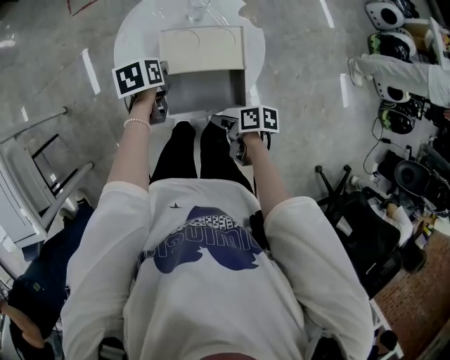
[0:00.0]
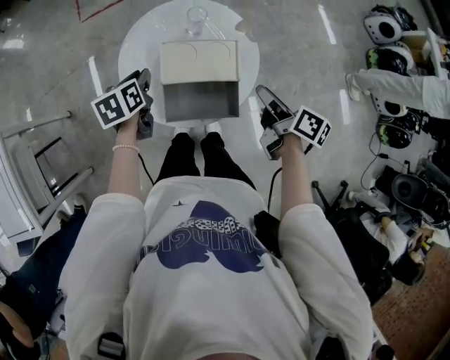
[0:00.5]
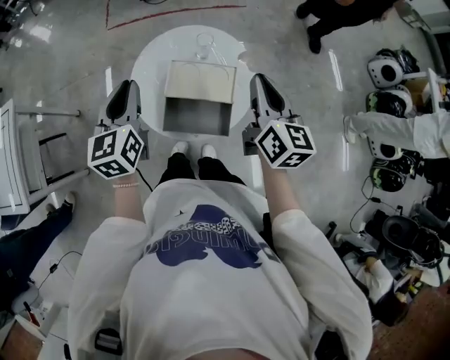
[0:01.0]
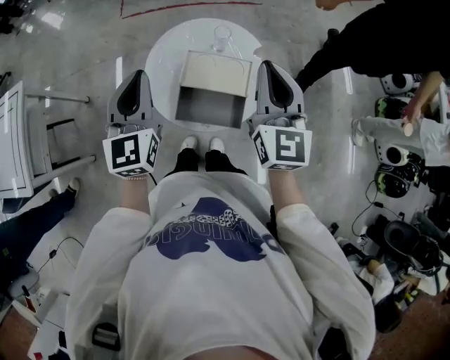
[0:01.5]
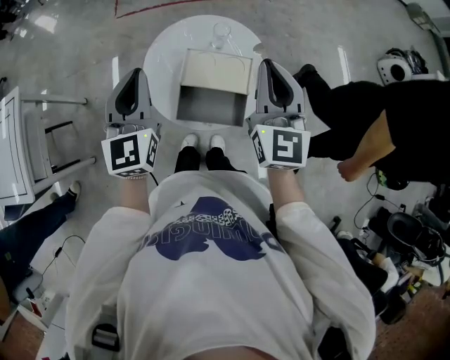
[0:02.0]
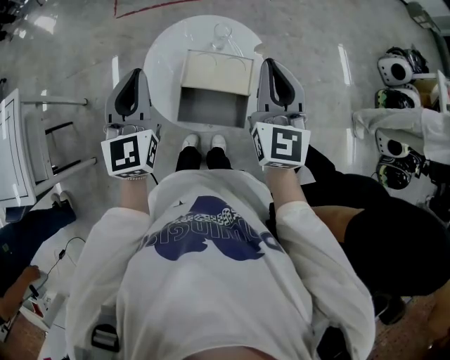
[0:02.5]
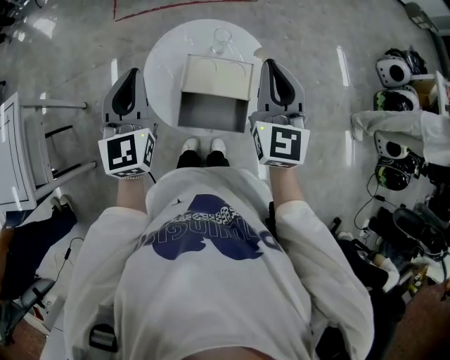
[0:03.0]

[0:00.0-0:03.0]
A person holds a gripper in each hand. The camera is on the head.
0:00.0 to 0:01.5: Both grippers travel together upward, roughly 35 cm. The right gripper points its fingers about 40 degrees further upward, and closes up, while the left gripper points its fingers some 50 degrees further upward.
0:01.5 to 0:03.0: The grippers stay close to where they were, moving slightly.

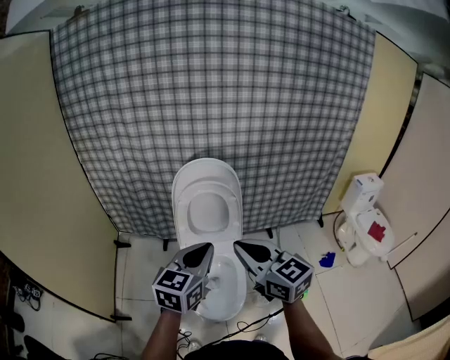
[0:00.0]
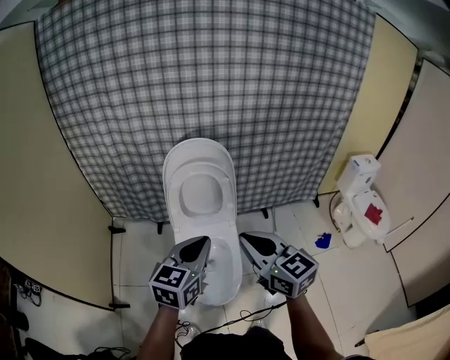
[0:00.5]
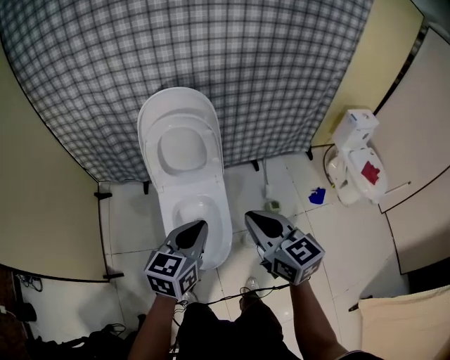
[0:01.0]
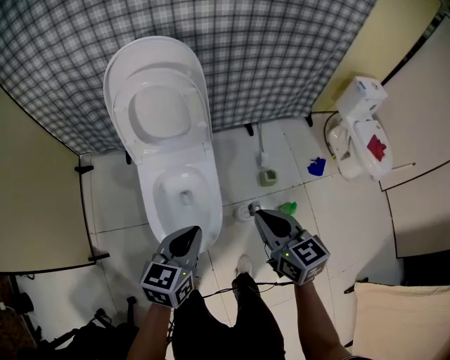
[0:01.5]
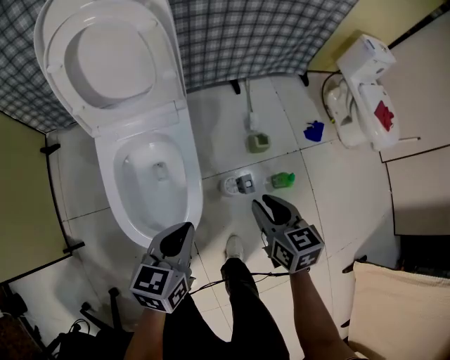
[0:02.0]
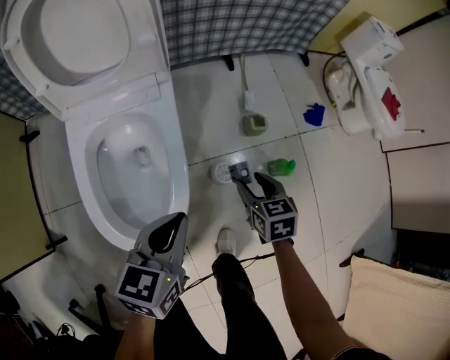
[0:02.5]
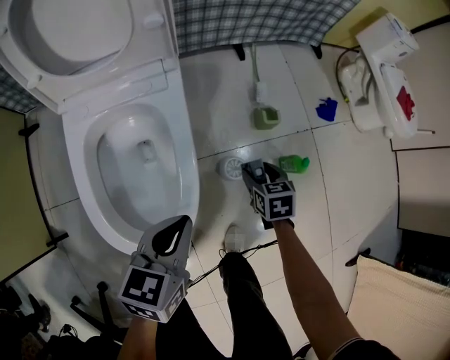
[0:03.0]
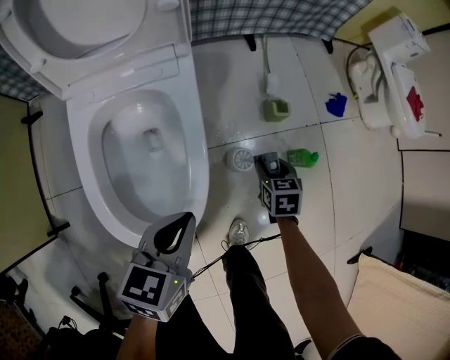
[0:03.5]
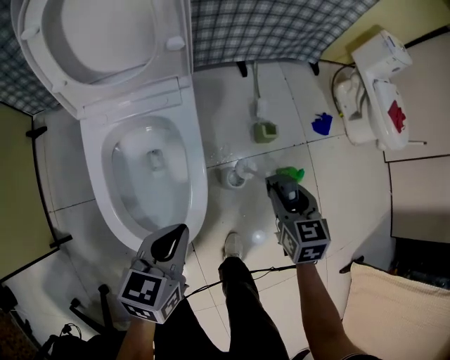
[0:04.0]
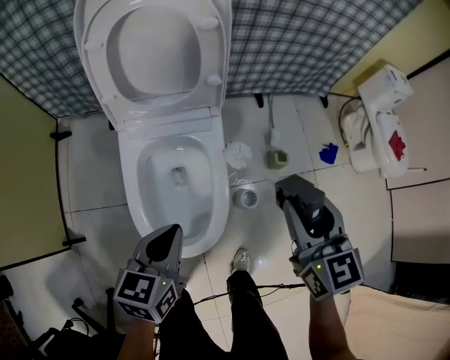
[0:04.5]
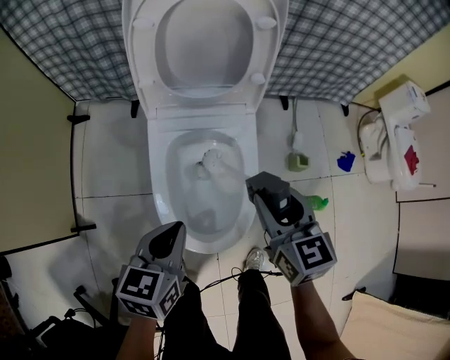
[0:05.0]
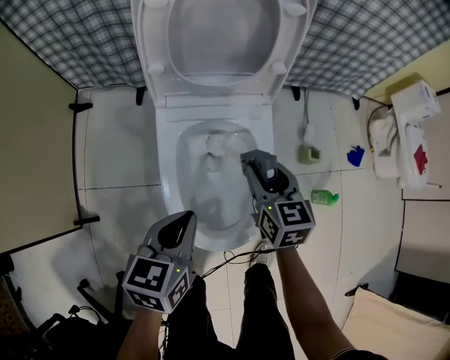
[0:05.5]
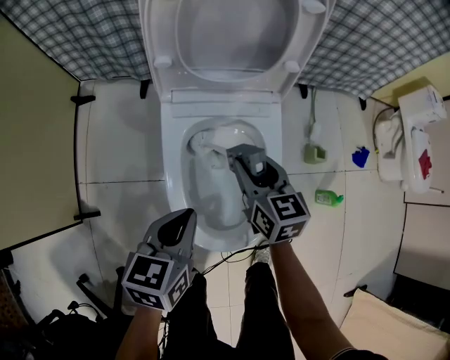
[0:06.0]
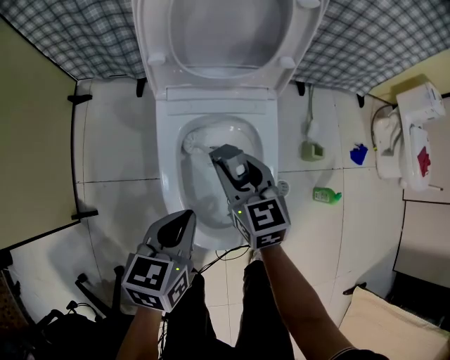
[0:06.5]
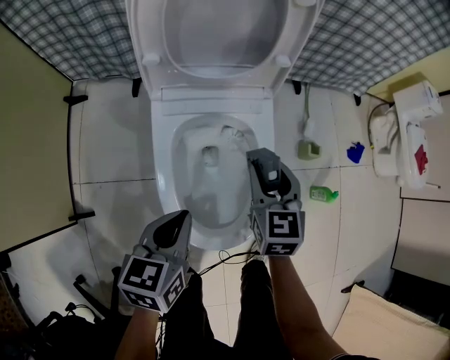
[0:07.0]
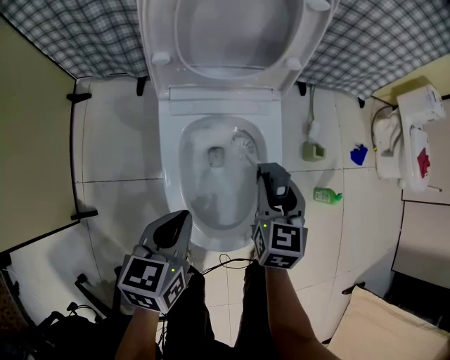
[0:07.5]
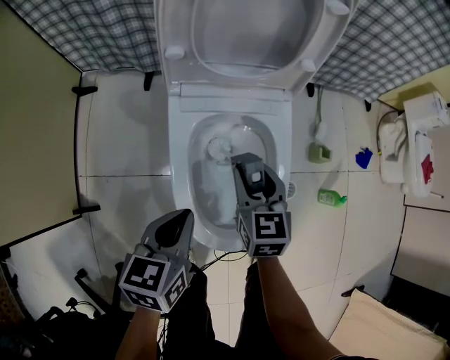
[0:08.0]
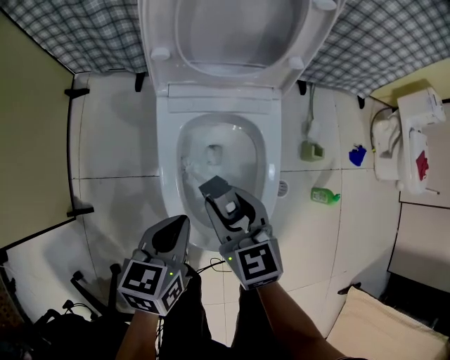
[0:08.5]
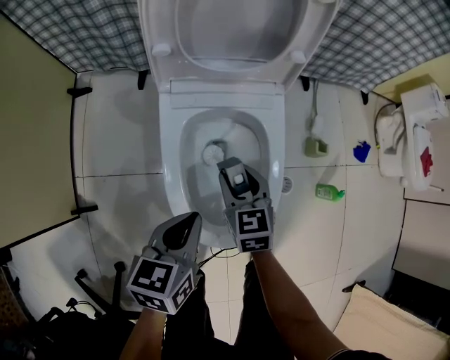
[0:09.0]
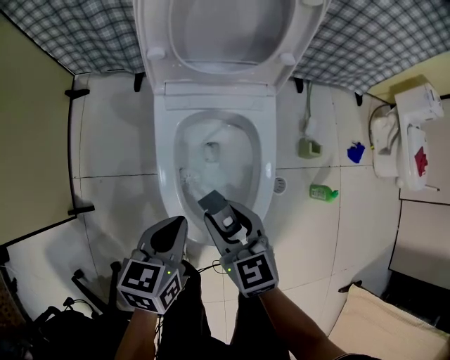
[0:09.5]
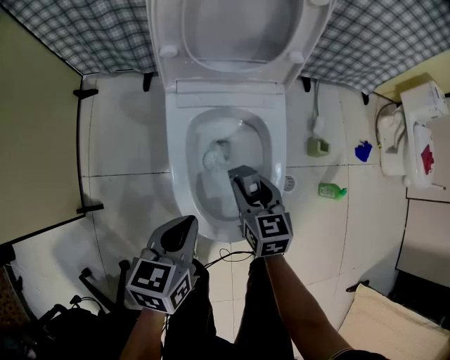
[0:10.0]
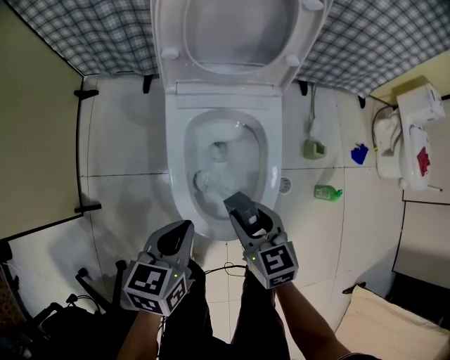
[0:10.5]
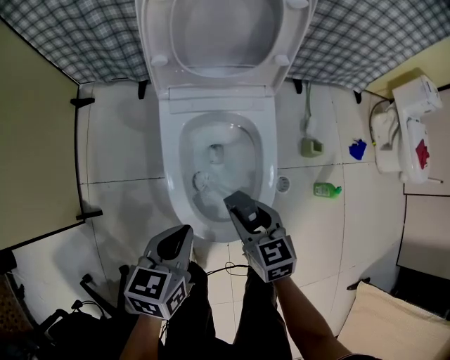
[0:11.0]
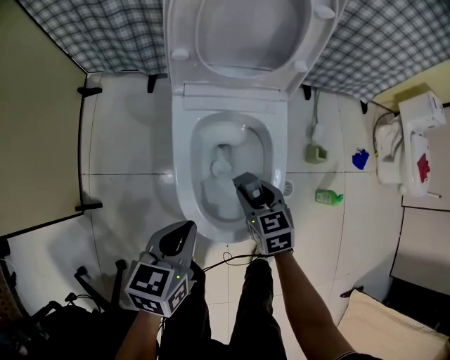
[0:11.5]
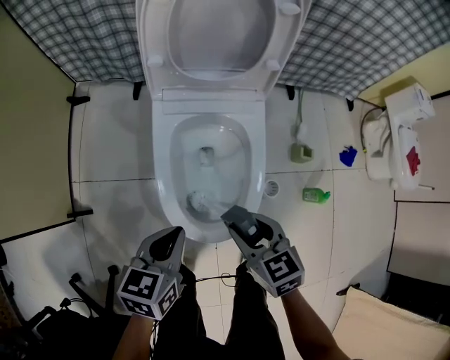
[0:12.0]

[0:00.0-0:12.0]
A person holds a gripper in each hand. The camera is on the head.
0:00.0 to 0:02.0: The right gripper travels downward and to the right by roughly 50 cm, tilts its fingers approximately 30 degrees downward, and opens its fingers; the left gripper is displaced downward by roughly 40 cm, and changes its angle by approximately 30 degrees.
0:02.0 to 0:04.0: The right gripper moves about 25 cm downward and comes back. Meanwhile the left gripper heads downward, covering about 5 cm.
0:04.0 to 0:06.0: The left gripper shifts approximately 20 cm to the left. Meanwhile the right gripper goes about 30 cm to the left, and turns by about 30 degrees.
0:06.0 to 0:08.0: The right gripper travels to the right and back again, roughly 10 cm each way.
0:08.0 to 0:10.0: The right gripper moves forward and backward over some 10 cm, changing direction 3 times.
0:10.0 to 0:12.0: The right gripper goes forward and backward, roughly 10 cm each way, reversing 2 times.

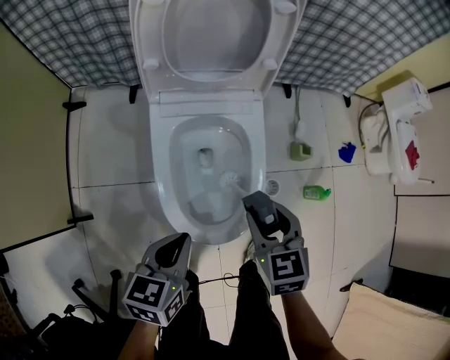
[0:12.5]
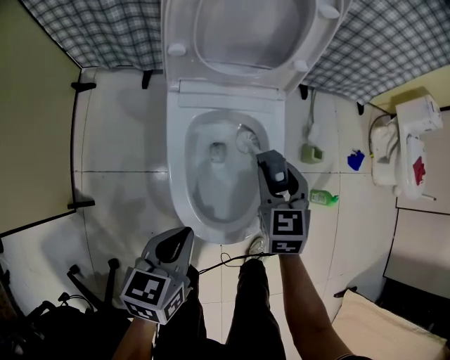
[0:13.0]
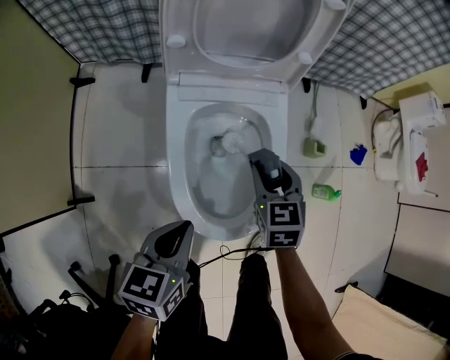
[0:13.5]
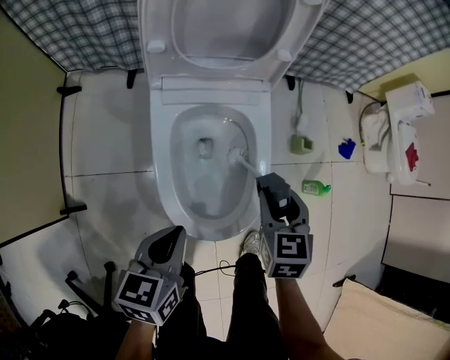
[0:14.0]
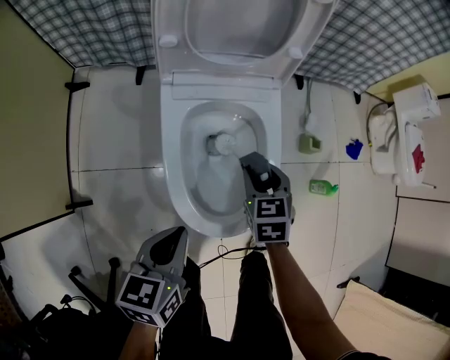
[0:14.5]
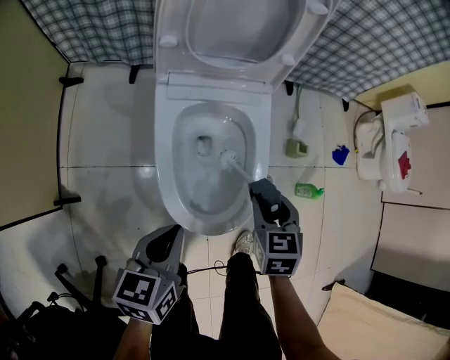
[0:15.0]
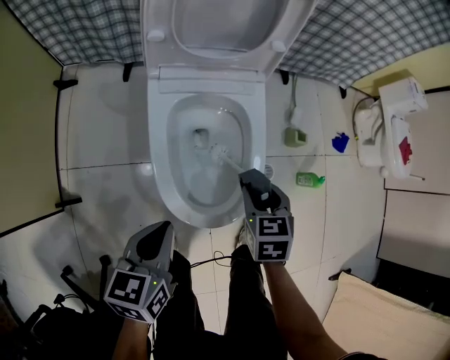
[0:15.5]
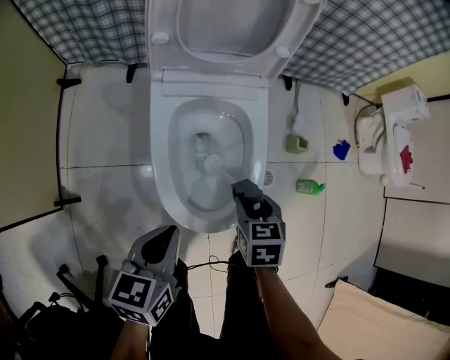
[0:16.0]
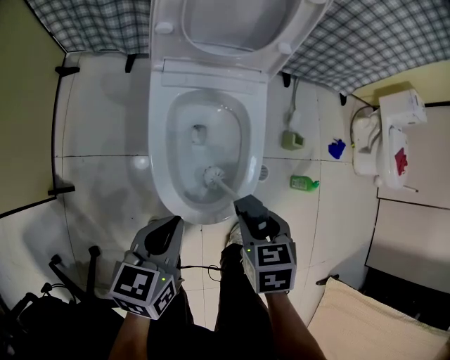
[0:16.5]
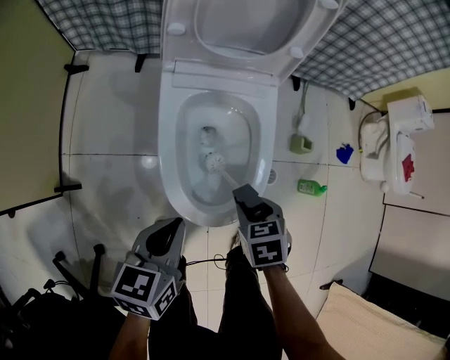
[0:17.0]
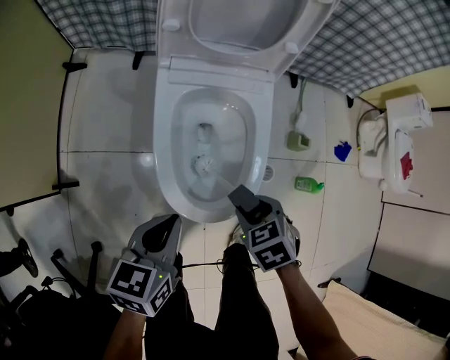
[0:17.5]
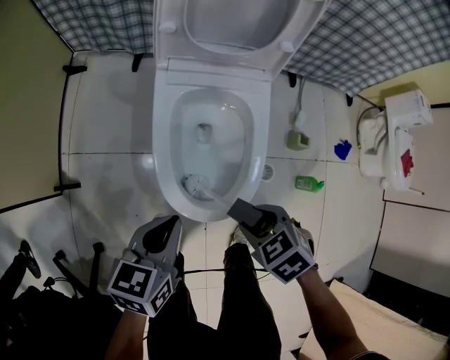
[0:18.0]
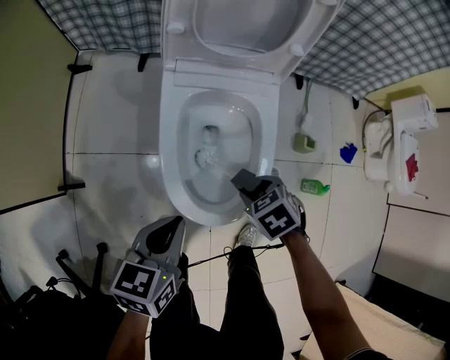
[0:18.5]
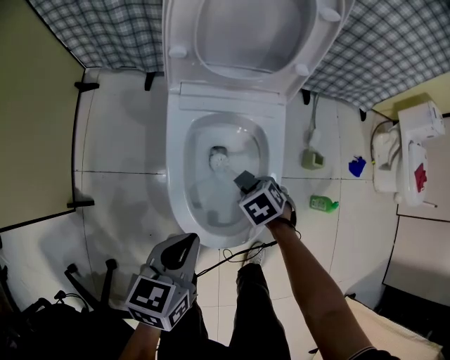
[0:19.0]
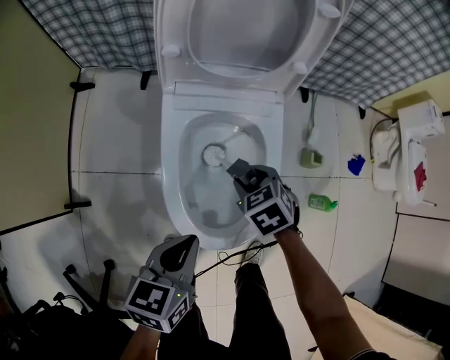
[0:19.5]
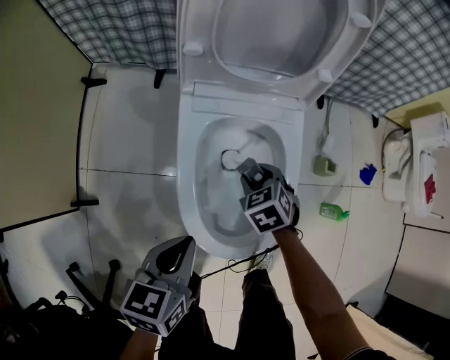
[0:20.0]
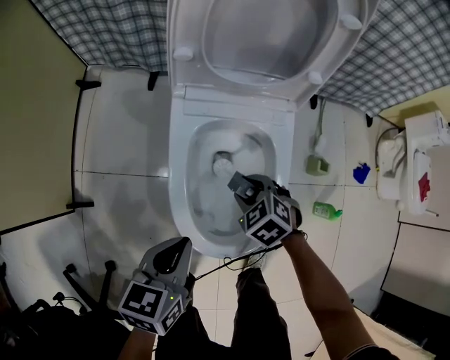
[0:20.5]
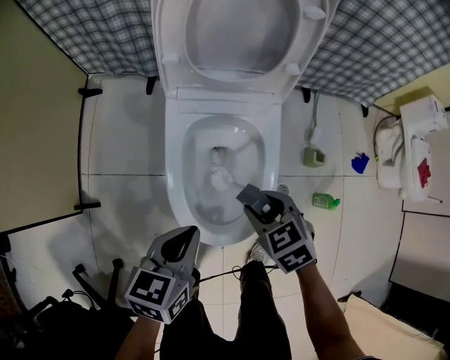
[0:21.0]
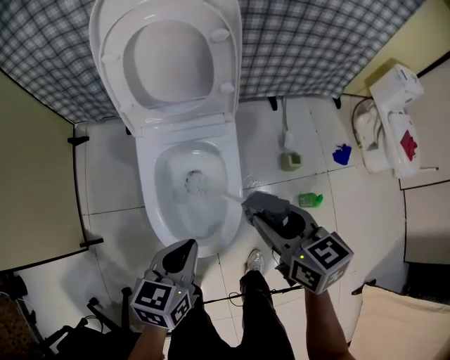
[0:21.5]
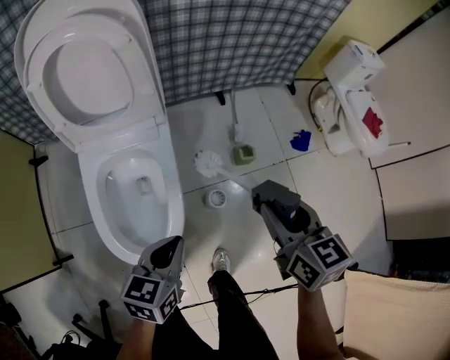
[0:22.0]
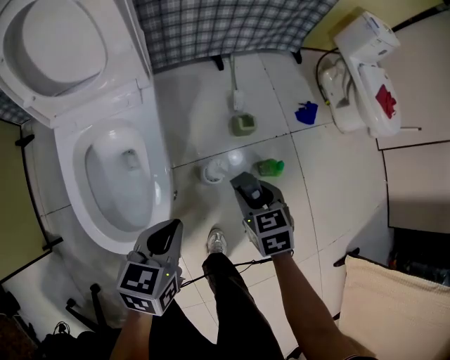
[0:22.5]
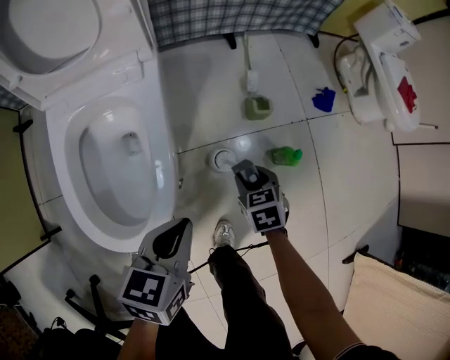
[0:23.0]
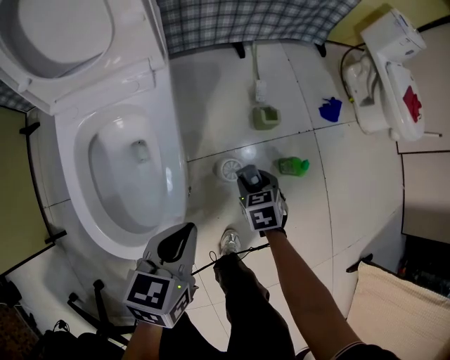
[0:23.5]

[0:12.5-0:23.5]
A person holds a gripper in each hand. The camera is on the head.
0:12.5 to 0:14.5: The right gripper shifts some 10 cm downward and forward.
0:14.5 to 0:16.0: The right gripper travels backward by approximately 10 cm.
0:16.0 to 0:18.0: The right gripper moves up and down over roughly 5 cm, changing direction 2 times, and rotates roughly 40 degrees.
0:18.0 to 0:20.0: The left gripper shifts by approximately 5 cm. The right gripper moves up and down over some 15 cm, changing direction 2 times.
0:20.0 to 0:21.5: The right gripper moves upward and to the right, some 30 cm, and swivels approximately 50 degrees. Meanwhile the left gripper heads to the right and upward, covering some 15 cm.
0:21.5 to 0:23.5: The right gripper moves downward and to the right, roughly 40 cm, and changes its angle by about 30 degrees. Meanwhile the left gripper is displaced to the right and downward by about 20 cm.
